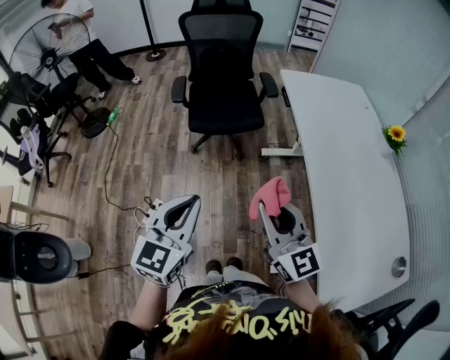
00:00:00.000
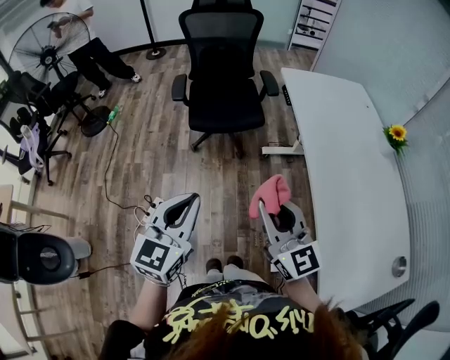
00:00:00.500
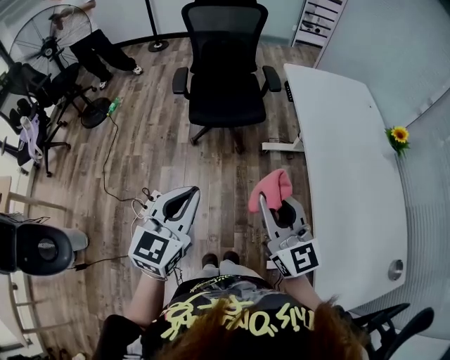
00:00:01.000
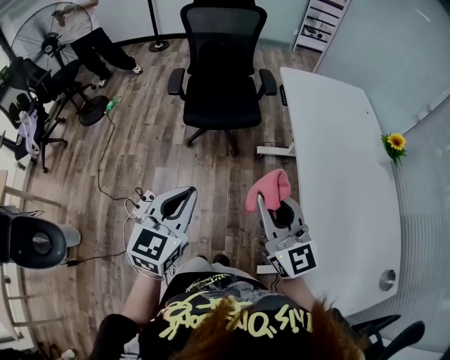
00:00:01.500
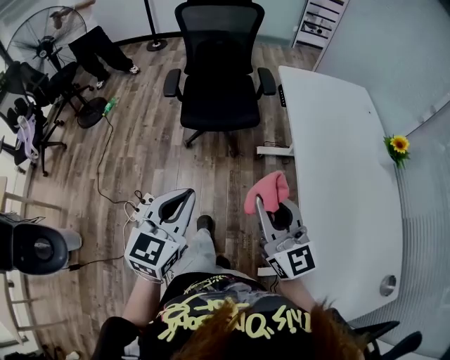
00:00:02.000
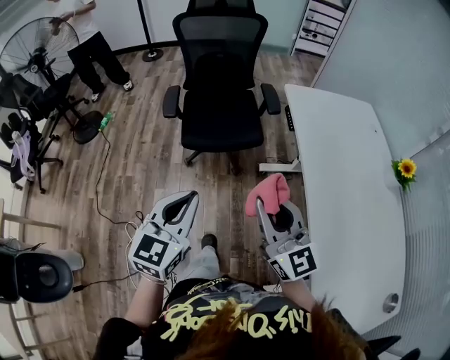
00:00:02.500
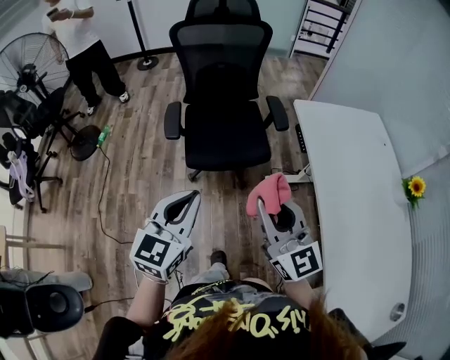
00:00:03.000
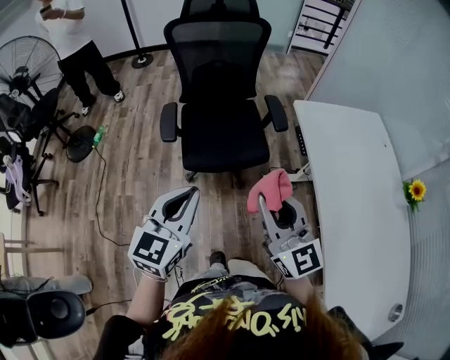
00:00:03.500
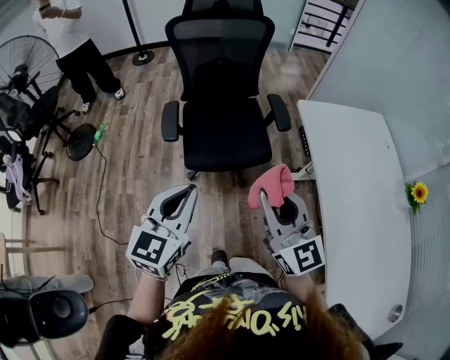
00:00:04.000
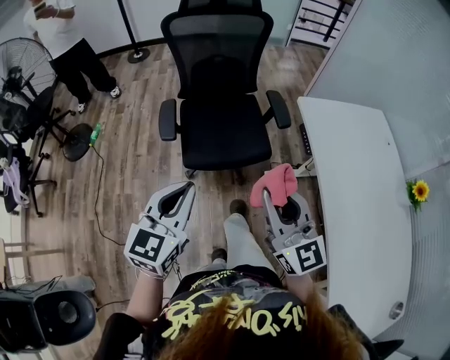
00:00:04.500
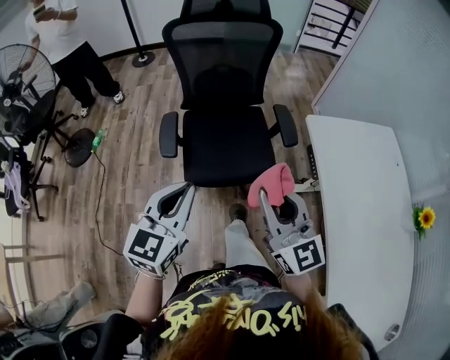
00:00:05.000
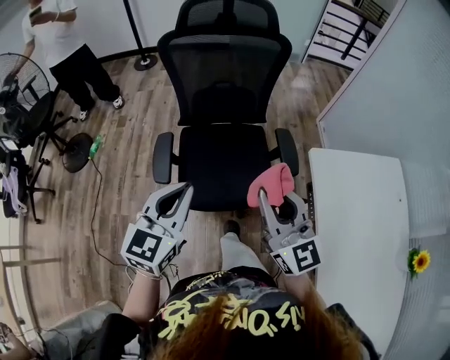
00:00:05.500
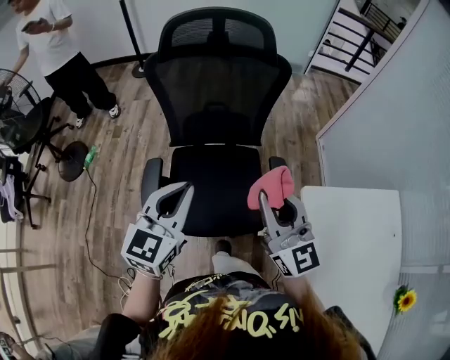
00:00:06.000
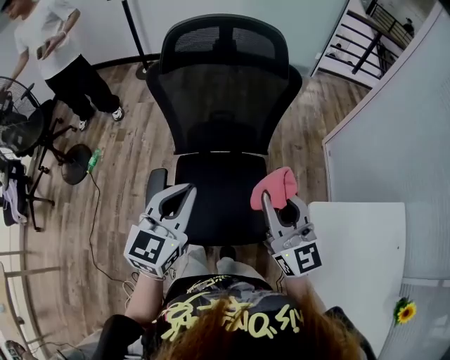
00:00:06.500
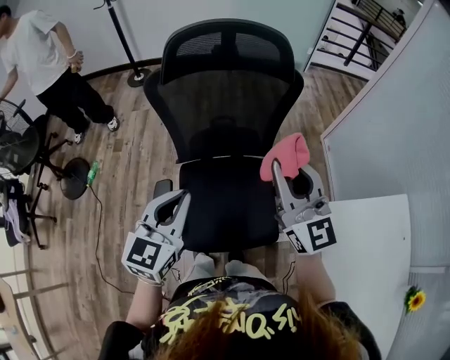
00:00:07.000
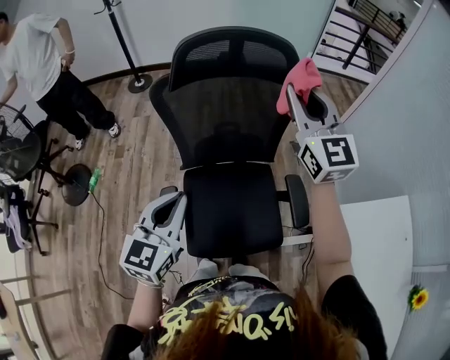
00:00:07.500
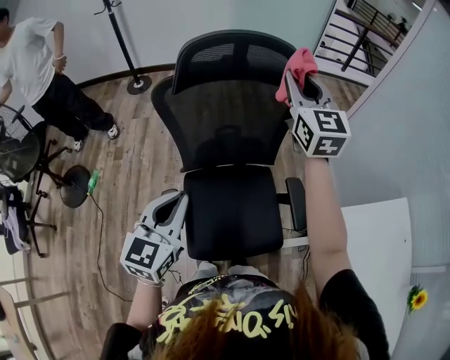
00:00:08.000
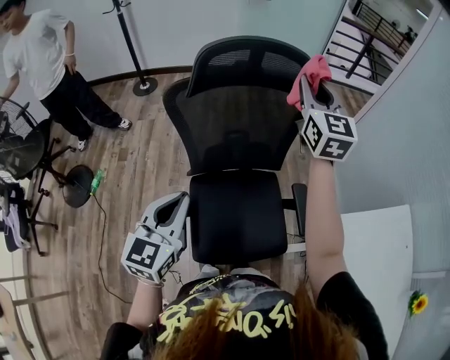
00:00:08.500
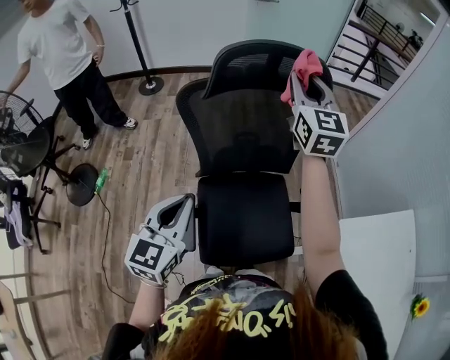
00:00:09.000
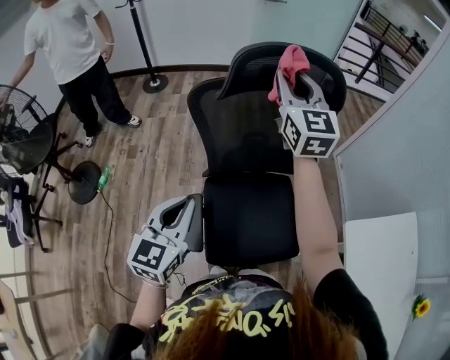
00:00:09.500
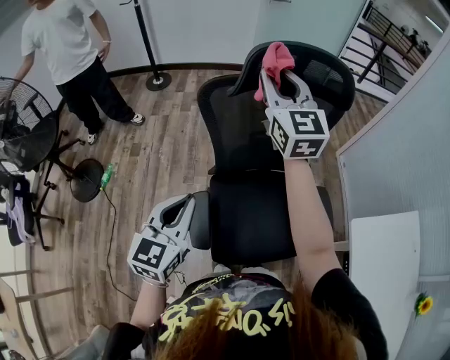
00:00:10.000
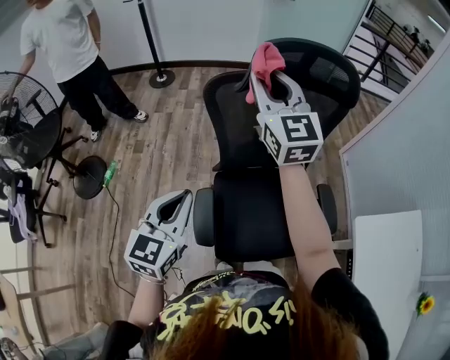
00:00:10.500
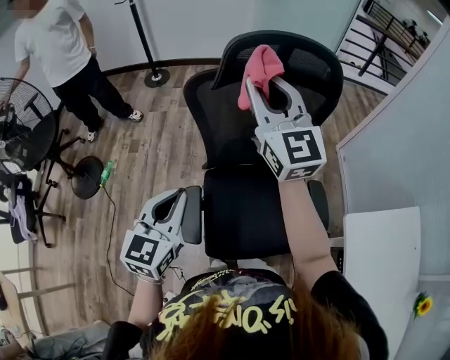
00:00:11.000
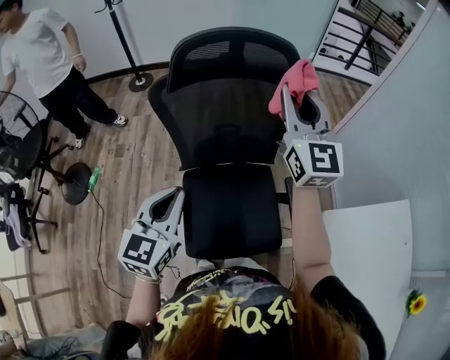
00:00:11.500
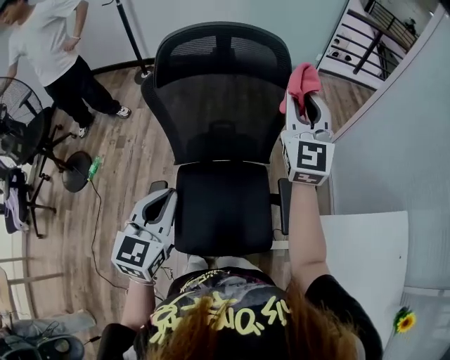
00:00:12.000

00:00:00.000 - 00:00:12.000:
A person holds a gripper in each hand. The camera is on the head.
00:00:00.000 - 00:00:02.000: The right gripper moves forward and to the right, approximately 5 cm. The left gripper moves some 5 cm.
00:00:02.000 - 00:00:04.000: Both grippers travel together forward, roughly 25 cm.
00:00:04.000 - 00:00:06.000: The grippers both shift forward by roughly 35 cm.
00:00:06.000 - 00:00:08.000: The right gripper shifts about 35 cm forward, and turns by some 20 degrees; the left gripper travels to the left and forward by approximately 15 cm.
00:00:08.000 - 00:00:10.000: The left gripper heads to the left, covering some 10 cm; the right gripper goes roughly 20 cm to the left.
00:00:10.000 - 00:00:12.000: The left gripper shifts roughly 15 cm to the right; the right gripper travels to the right by roughly 25 cm.

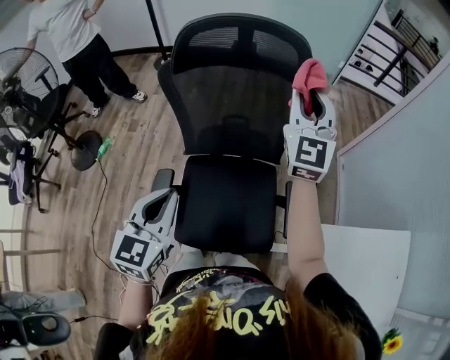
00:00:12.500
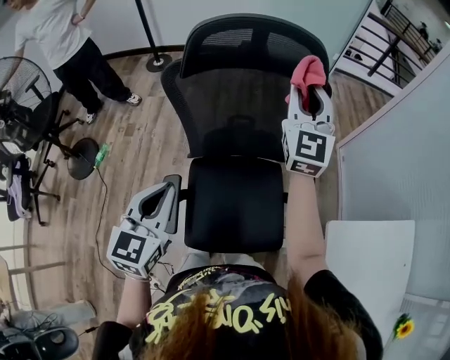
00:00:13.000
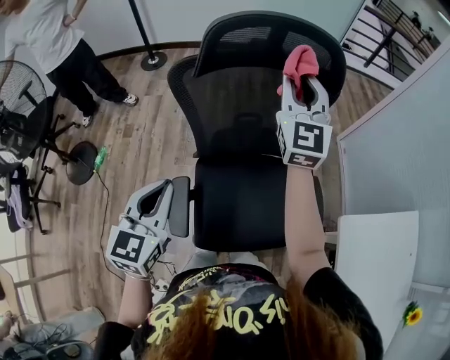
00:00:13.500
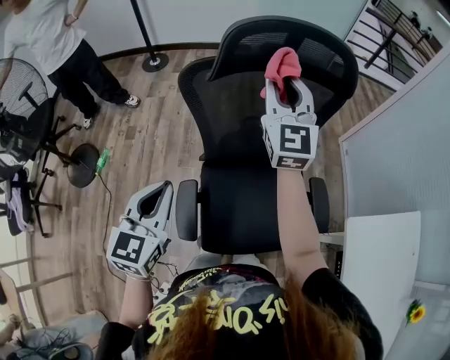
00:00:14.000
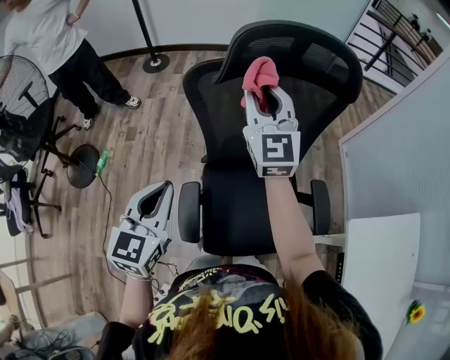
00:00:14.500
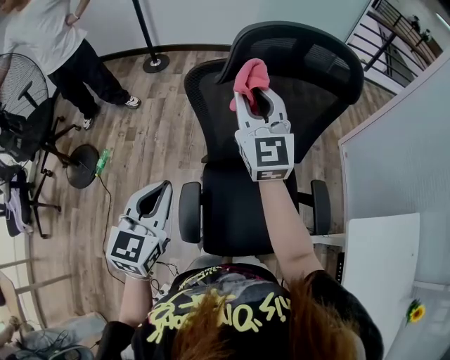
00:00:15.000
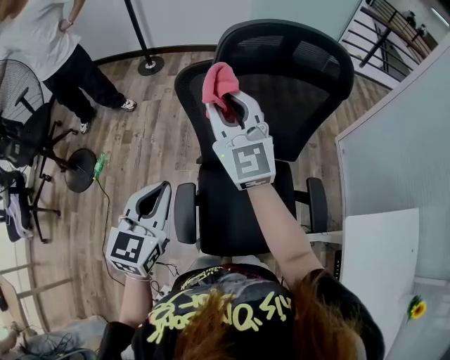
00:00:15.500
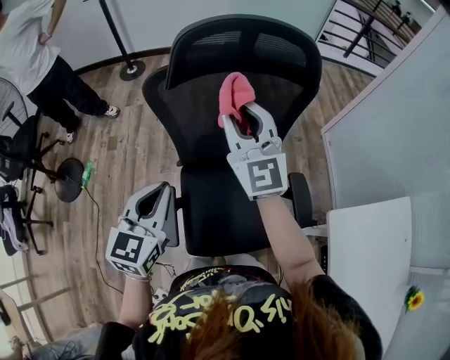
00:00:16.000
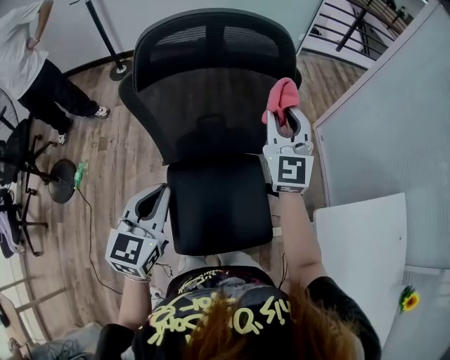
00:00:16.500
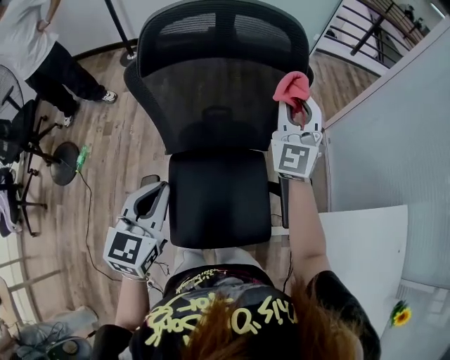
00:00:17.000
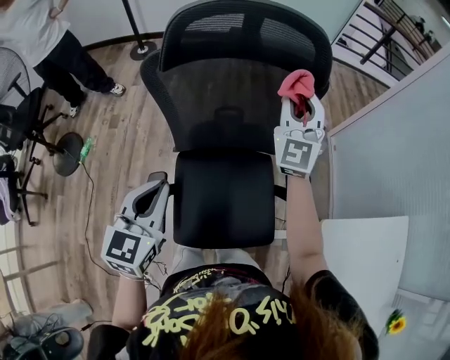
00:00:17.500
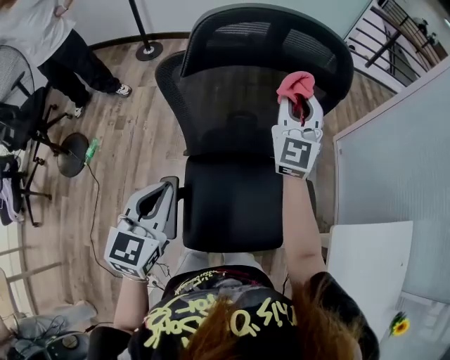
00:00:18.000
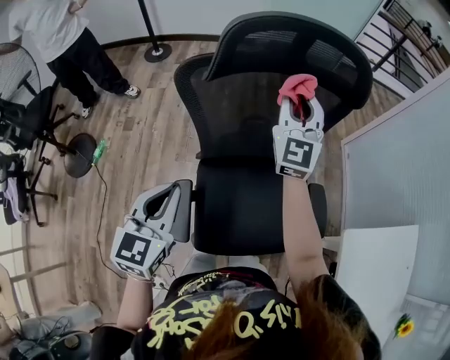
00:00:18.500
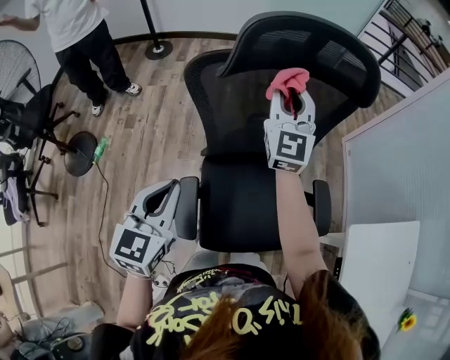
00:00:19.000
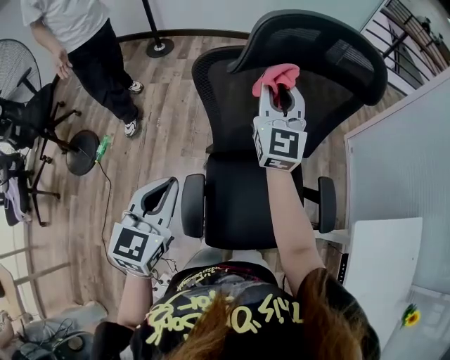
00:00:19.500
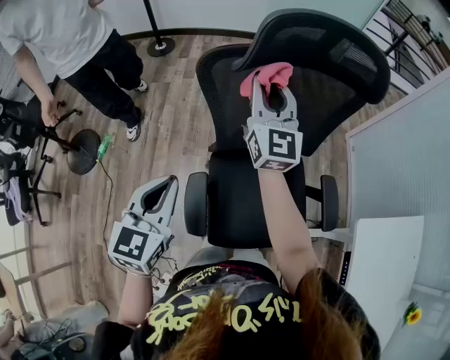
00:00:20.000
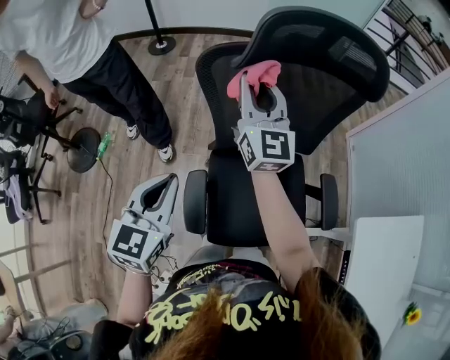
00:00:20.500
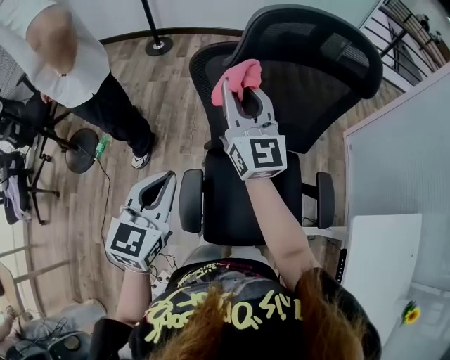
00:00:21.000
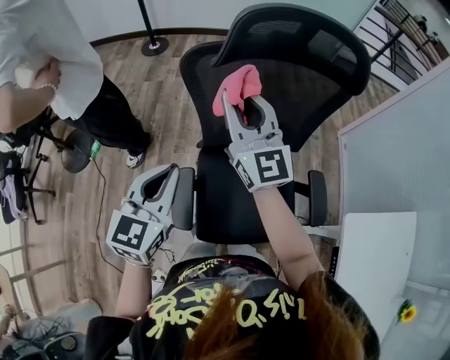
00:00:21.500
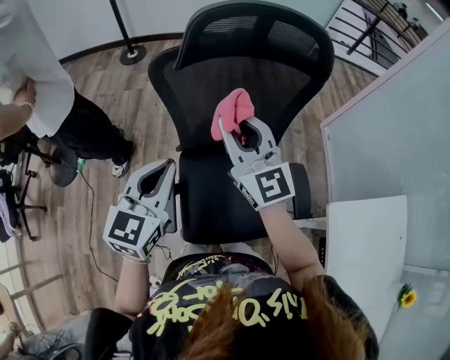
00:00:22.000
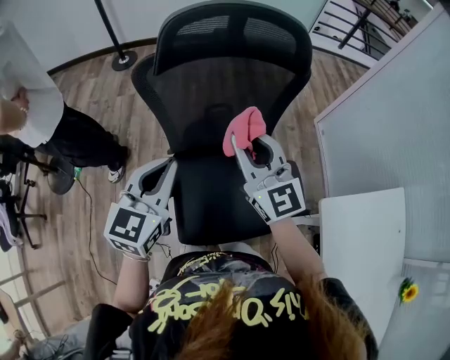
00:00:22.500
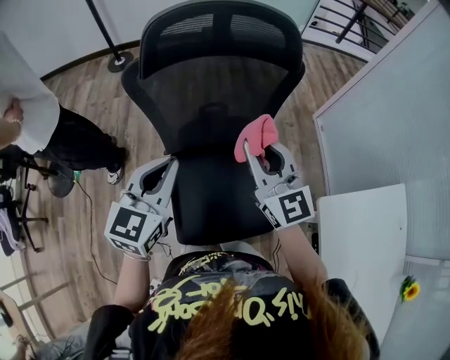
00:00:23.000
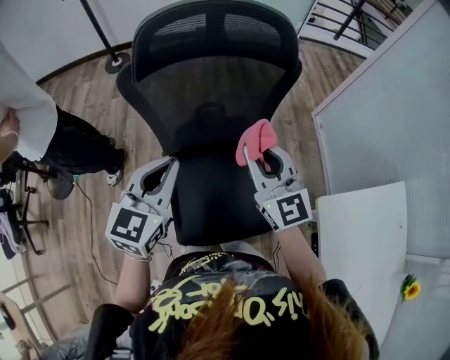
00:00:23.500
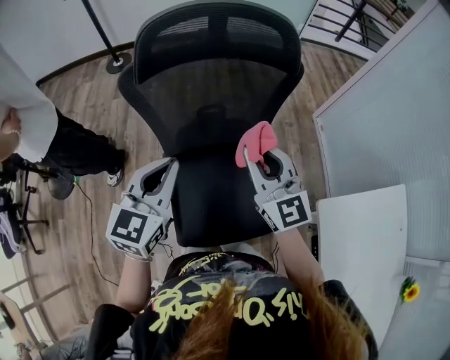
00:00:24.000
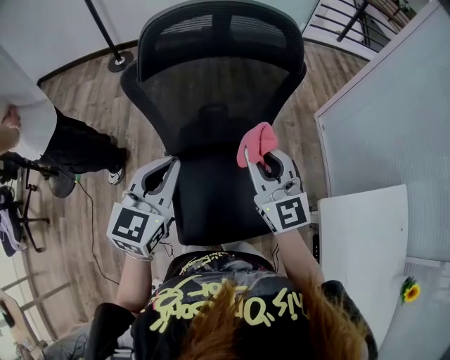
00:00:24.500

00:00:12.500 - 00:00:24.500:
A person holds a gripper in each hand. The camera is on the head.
00:00:12.500 - 00:00:14.500: The two grippers go approximately 20 cm to the left.
00:00:14.500 - 00:00:16.500: The right gripper heads to the right, covering about 20 cm, while the left gripper travels to the right by about 15 cm.
00:00:16.500 - 00:00:18.500: The left gripper shifts some 10 cm to the left; the right gripper travels to the left and forward by approximately 15 cm.
00:00:18.500 - 00:00:20.500: The right gripper travels to the left by roughly 15 cm, and swivels roughly 30 degrees. The left gripper goes approximately 5 cm to the left.
00:00:20.500 - 00:00:22.500: The right gripper shifts about 20 cm backward and to the right, while the left gripper moves to the right, approximately 15 cm.
00:00:22.500 - 00:00:24.500: The right gripper heads to the right, covering roughly 5 cm.

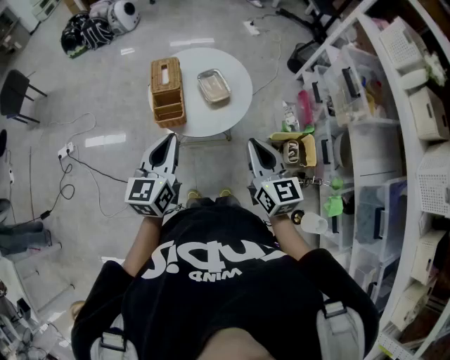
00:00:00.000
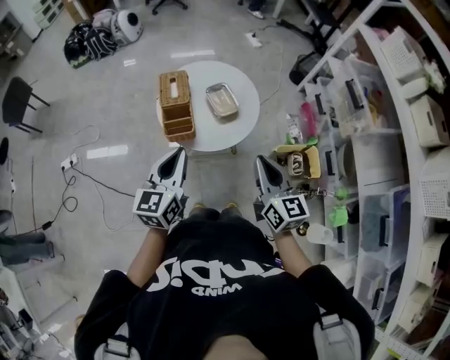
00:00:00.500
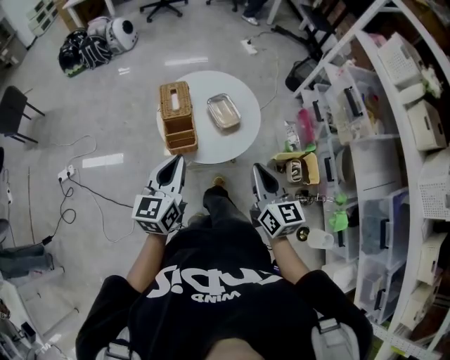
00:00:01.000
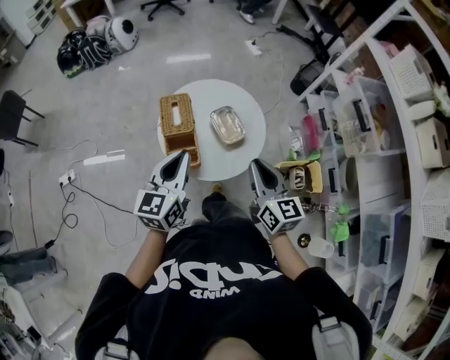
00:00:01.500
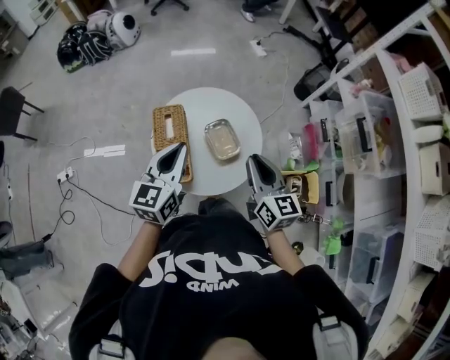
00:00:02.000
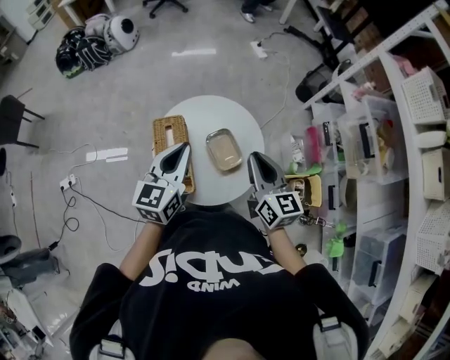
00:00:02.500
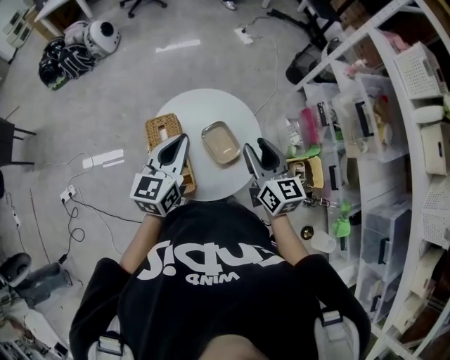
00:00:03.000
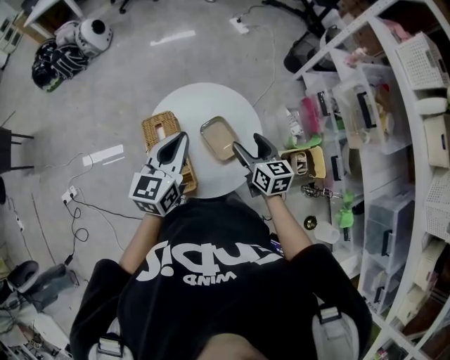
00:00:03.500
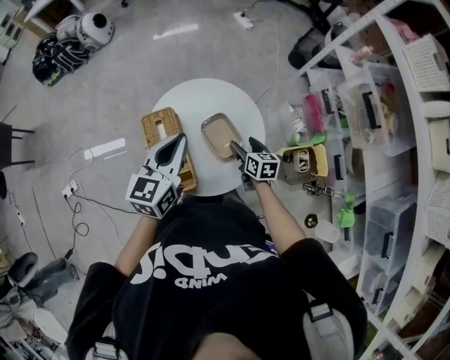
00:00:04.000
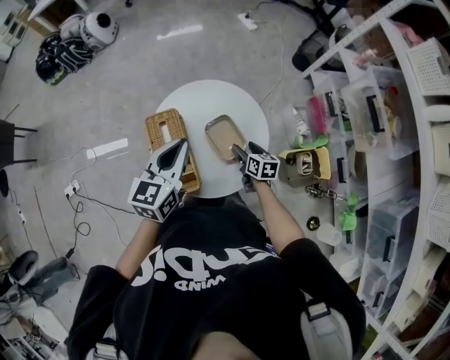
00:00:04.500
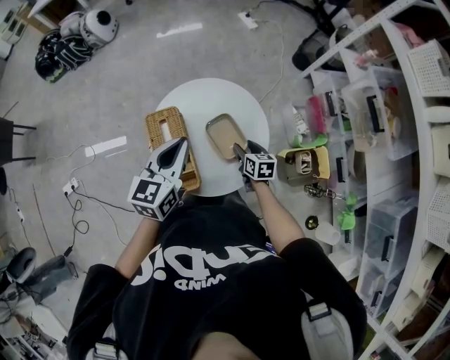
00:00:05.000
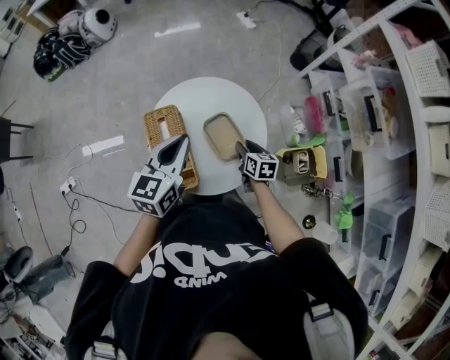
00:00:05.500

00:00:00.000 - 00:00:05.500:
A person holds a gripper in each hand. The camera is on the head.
00:00:00.000 - 00:00:02.000: Both grippers move forward, about 20 cm.
00:00:02.000 - 00:00:03.500: The left gripper moves forward, some 10 cm. The right gripper goes some 15 cm downward and forward, and opens.
00:00:03.500 - 00:00:05.500: The right gripper is displaced downward by some 15 cm, and closes its fingers.
